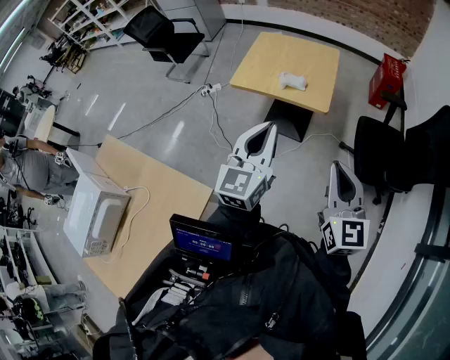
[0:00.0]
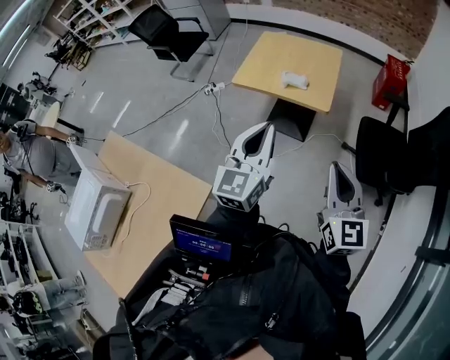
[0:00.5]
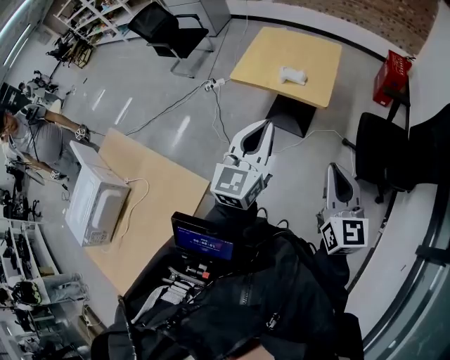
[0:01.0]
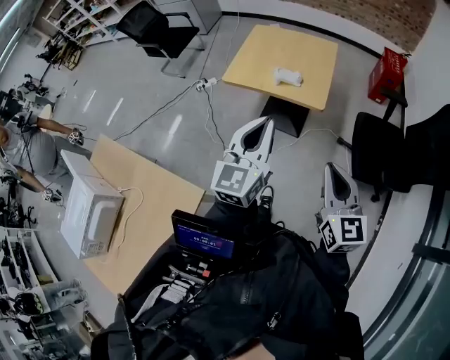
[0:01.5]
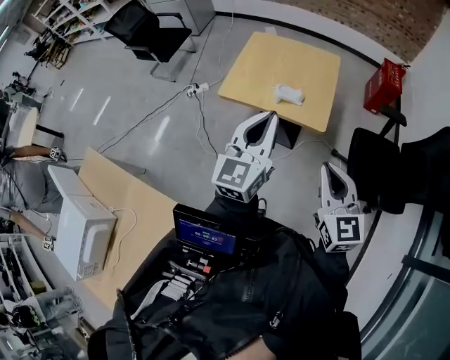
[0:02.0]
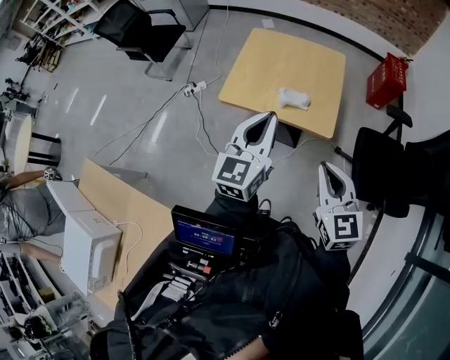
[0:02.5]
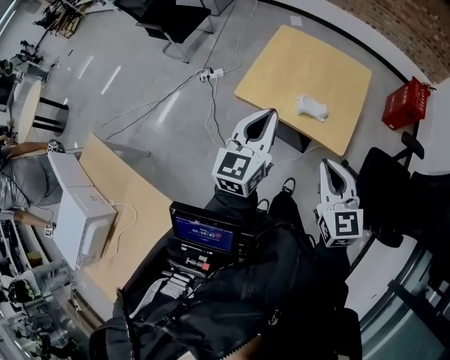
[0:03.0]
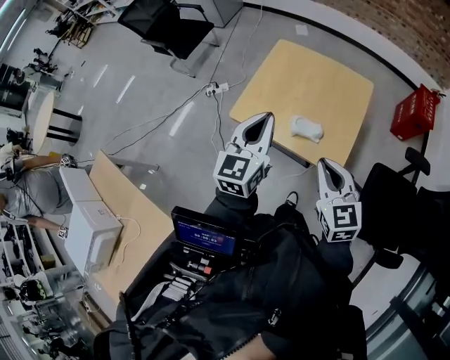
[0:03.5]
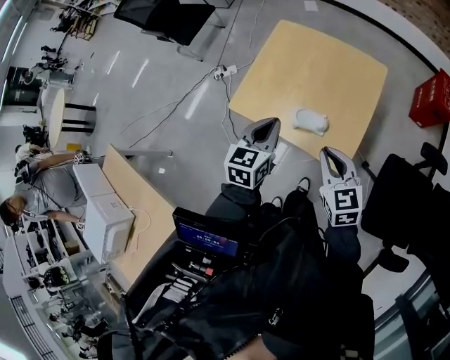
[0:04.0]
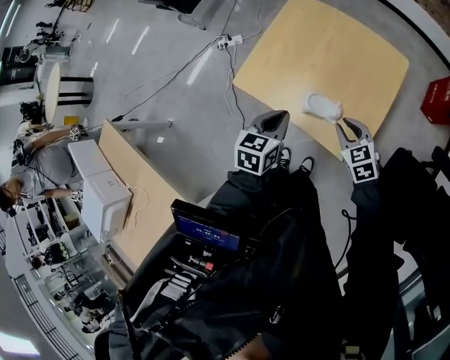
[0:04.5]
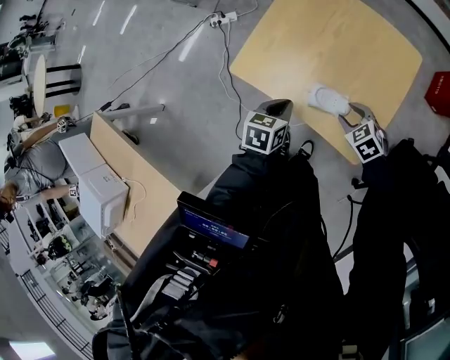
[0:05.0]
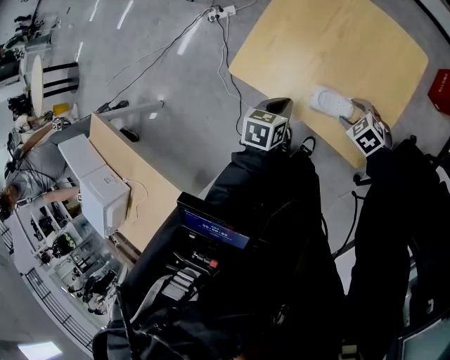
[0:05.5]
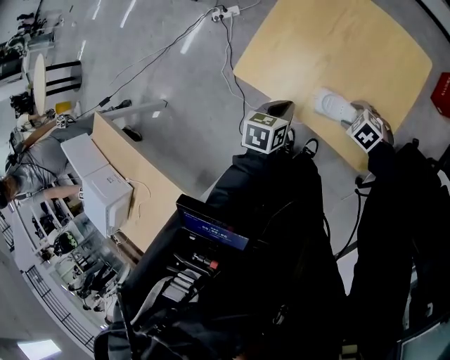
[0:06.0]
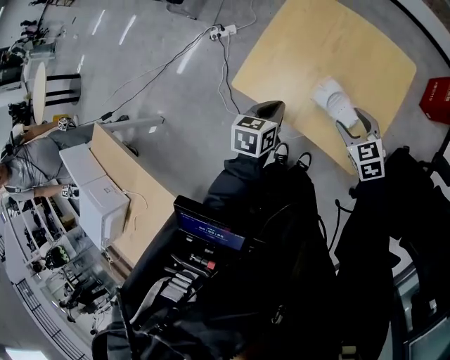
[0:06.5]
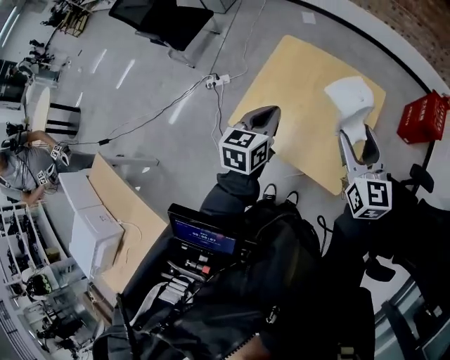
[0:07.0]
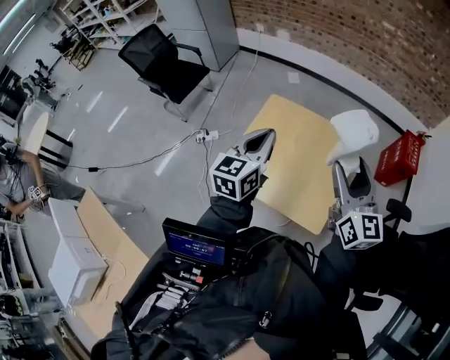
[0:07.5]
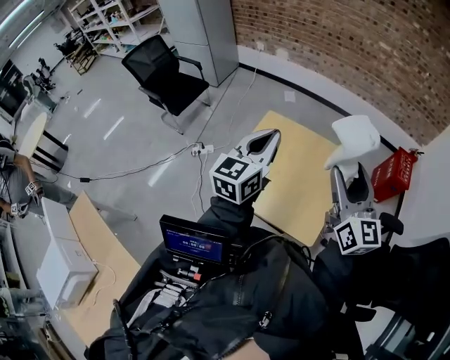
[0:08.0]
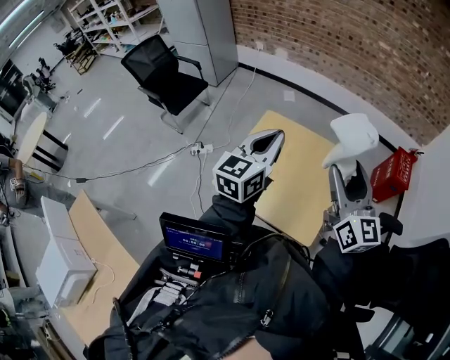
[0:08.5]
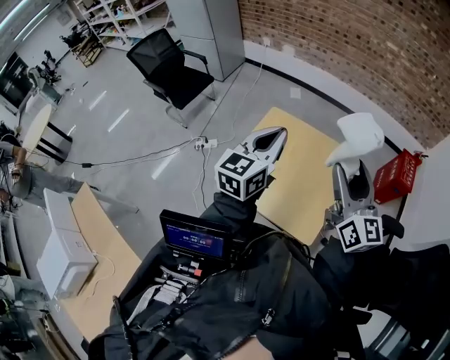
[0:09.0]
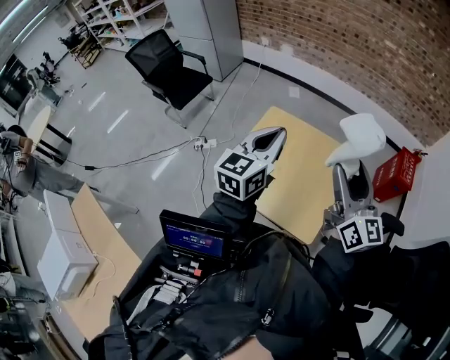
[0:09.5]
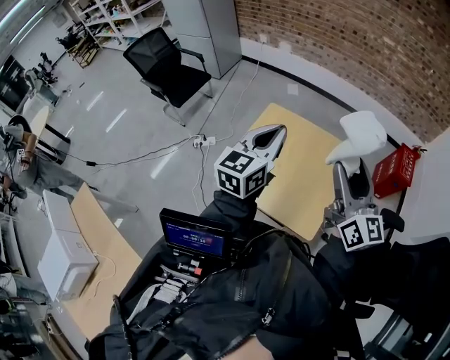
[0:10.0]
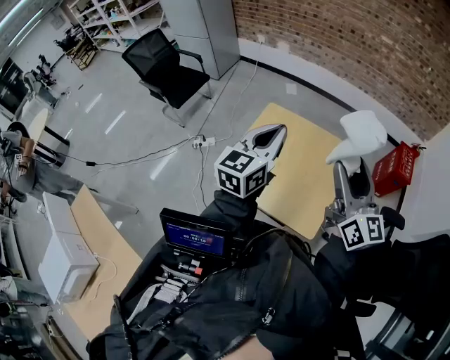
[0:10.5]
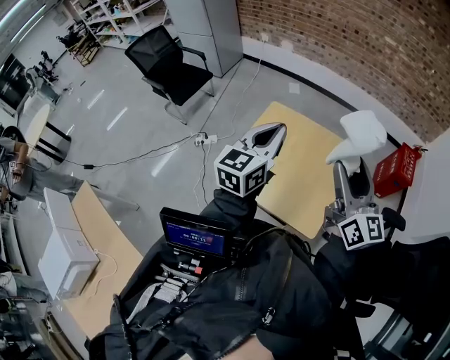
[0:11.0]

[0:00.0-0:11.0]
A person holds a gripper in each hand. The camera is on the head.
0.0 to 2.0 s: Both grippers move forward, some 15 cm.
2.0 to 3.5 s: The grippers both shift forward by roughly 25 cm.
3.5 to 5.5 s: The right gripper goes approximately 40 cm downward and forward, tilts its fingers about 50 degrees downward, and opens up; the left gripper shifts some 30 cm downward, and points its fingers approximately 40 degrees further downward.
5.5 to 7.5 s: Both grippers travel together upward, some 40 cm. The right gripper tips its fingers upward by roughly 70 degrees. The left gripper points its fingers about 40 degrees further upward.
7.5 to 9.0 s: The left gripper shifts approximately 5 cm upward.
9.0 to 11.0 s: Both grippers stay about where they are.

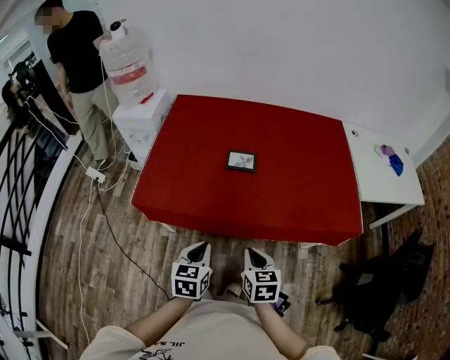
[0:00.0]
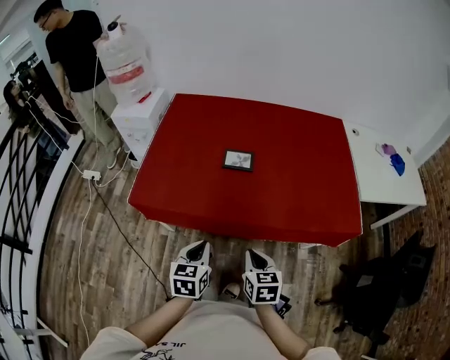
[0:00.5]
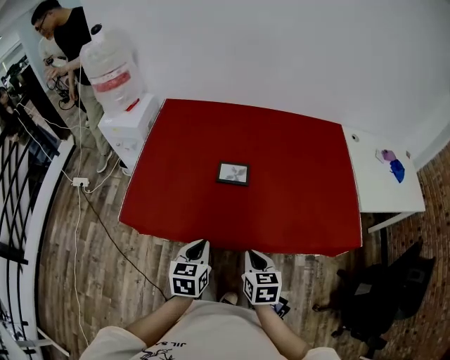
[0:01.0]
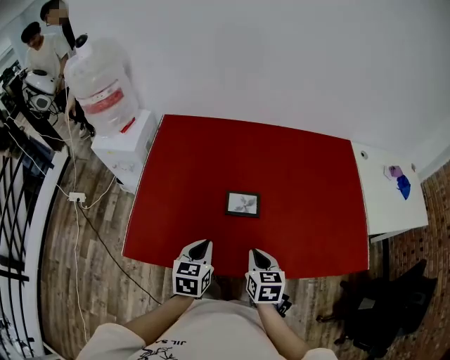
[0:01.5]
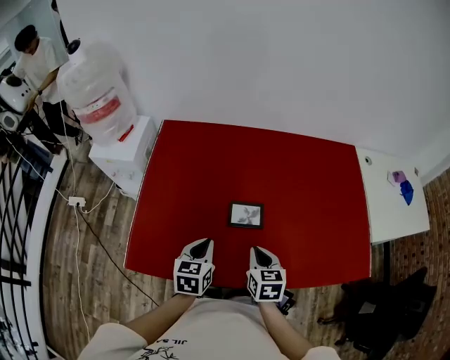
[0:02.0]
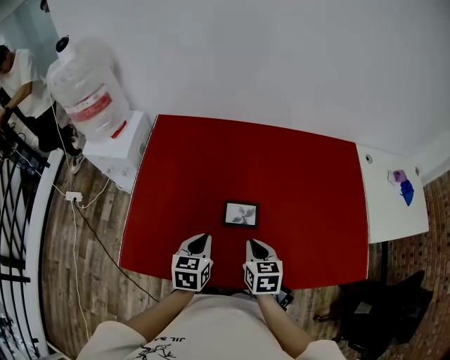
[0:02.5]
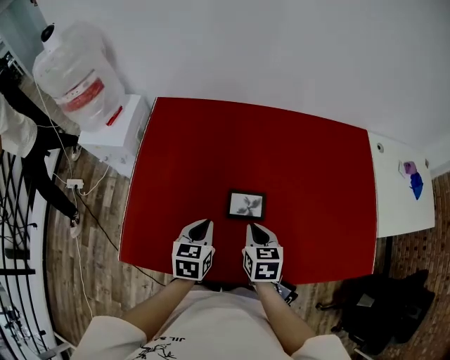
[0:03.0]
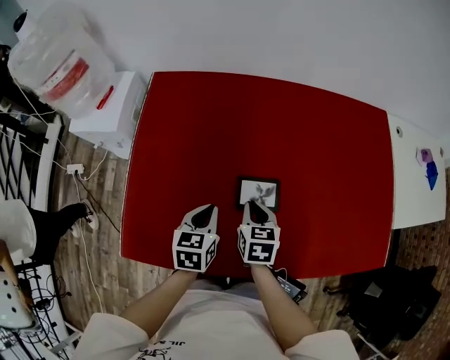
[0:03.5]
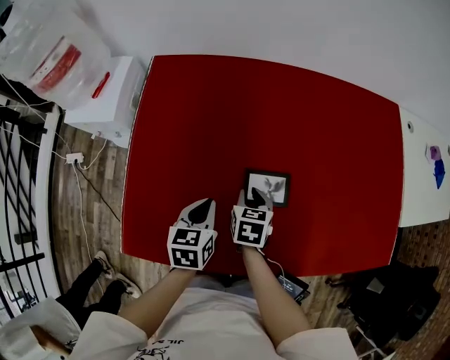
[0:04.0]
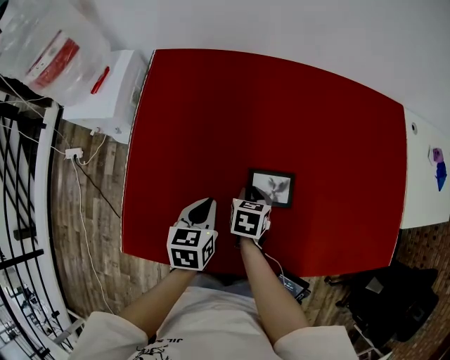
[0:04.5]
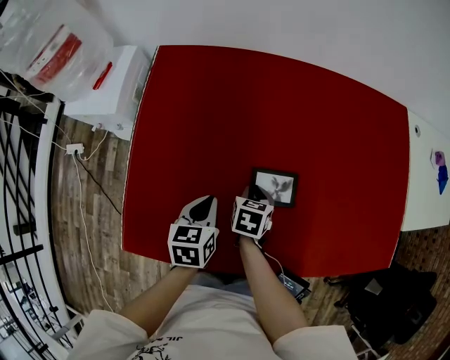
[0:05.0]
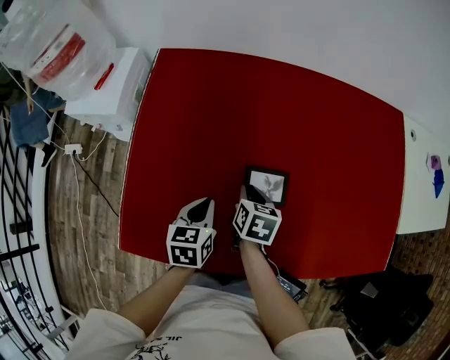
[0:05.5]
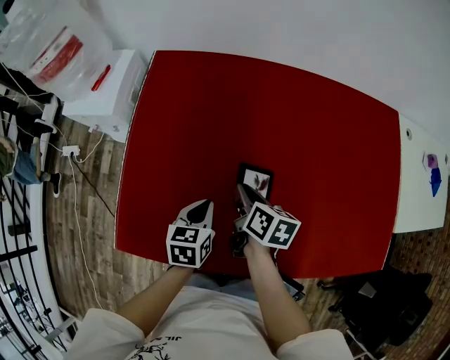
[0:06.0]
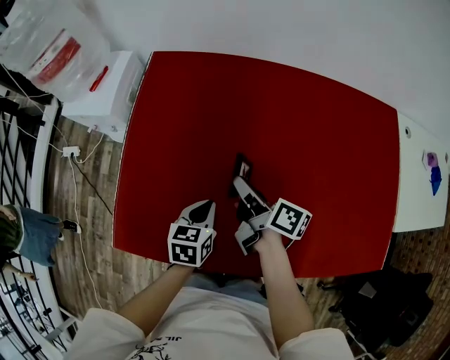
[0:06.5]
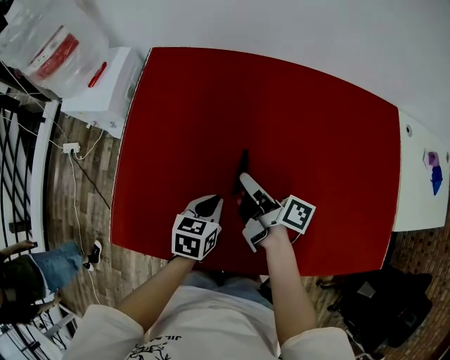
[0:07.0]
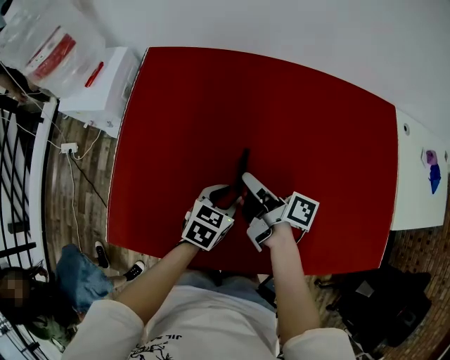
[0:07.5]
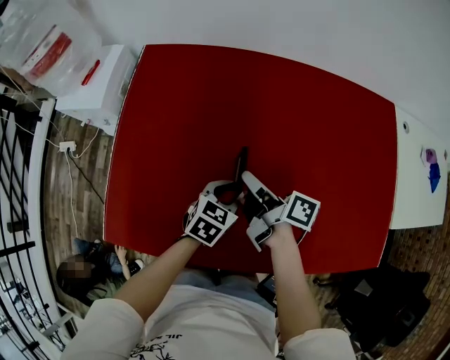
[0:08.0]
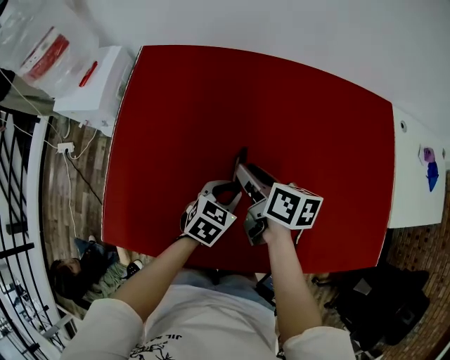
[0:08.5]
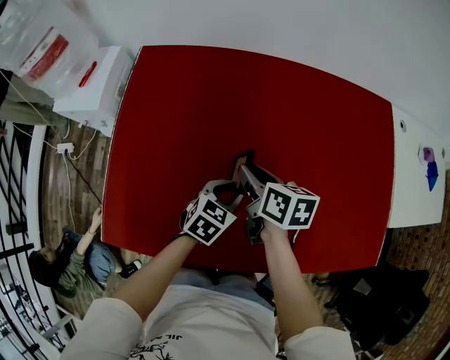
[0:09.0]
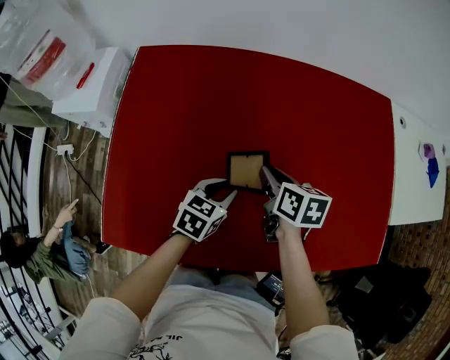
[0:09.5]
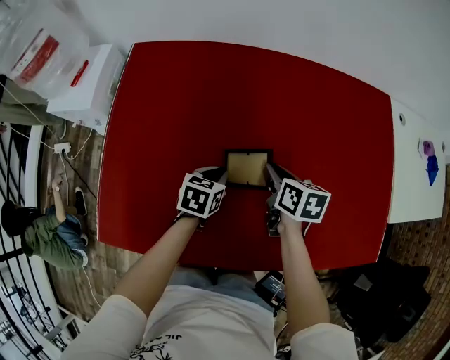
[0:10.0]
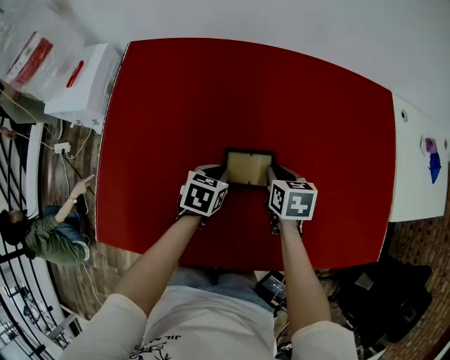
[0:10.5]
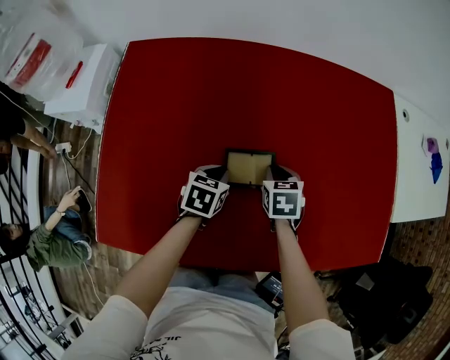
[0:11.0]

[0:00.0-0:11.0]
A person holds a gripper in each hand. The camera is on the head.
0.0 to 2.0 s: The grippers both shift forward by approximately 30 cm.
2.0 to 3.5 s: The right gripper goes about 15 cm forward, downward and to the left. Meanwhile the left gripper is displaced forward and downward by some 10 cm.
3.5 to 5.5 s: The left gripper ends up some 5 cm from where it was. The right gripper ends up approximately 5 cm from where it was.
5.5 to 7.5 s: The right gripper heads upward, covering approximately 10 cm, and angles its fingers upward, by about 40 degrees, while the left gripper is displaced to the right by some 15 cm, turns by roughly 30 degrees, and opens its fingers.
7.5 to 9.0 s: The right gripper changes its angle by about 40 degrees.
9.0 to 11.0 s: The left gripper changes place by roughly 5 cm, while the right gripper moves to the right and downward, about 15 cm, and rotates approximately 40 degrees.

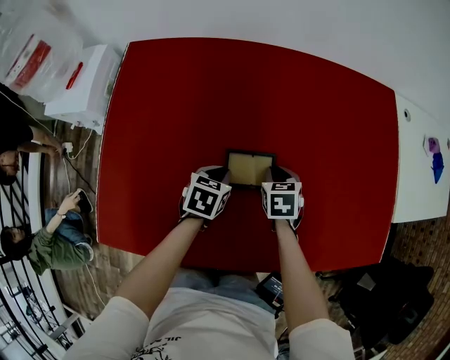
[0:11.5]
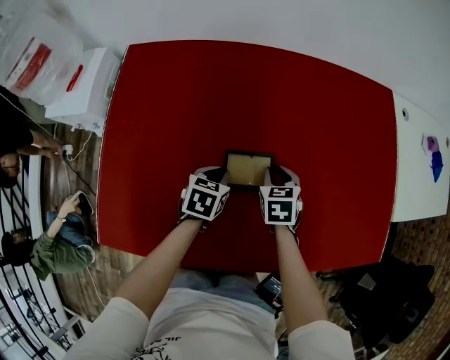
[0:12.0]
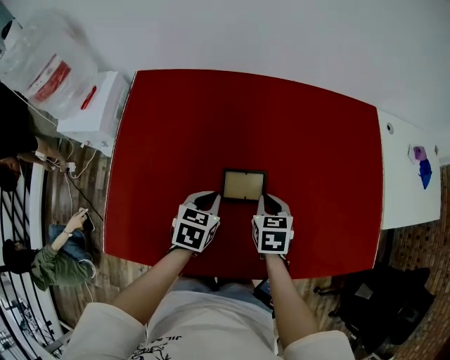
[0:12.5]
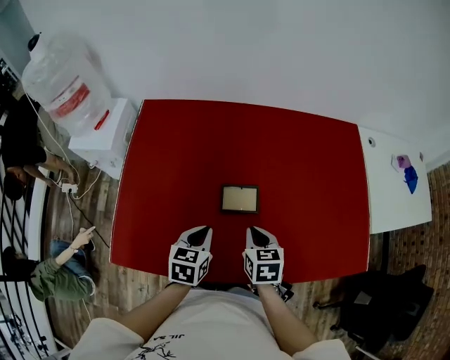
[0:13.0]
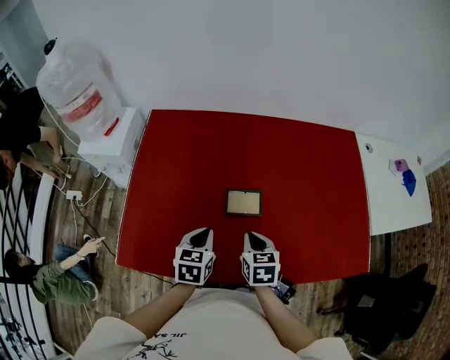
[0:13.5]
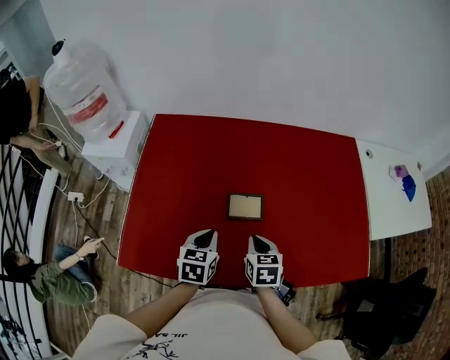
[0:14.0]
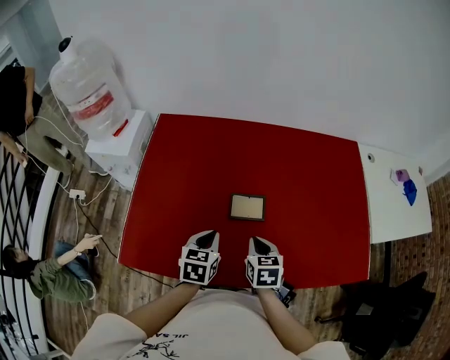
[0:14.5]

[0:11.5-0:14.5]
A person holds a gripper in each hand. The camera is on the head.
11.5 to 13.0 s: The grippers both shift upward and backward by approximately 20 cm.
13.0 to 14.5 s: The grippers stay close to where they were, moving slightly.

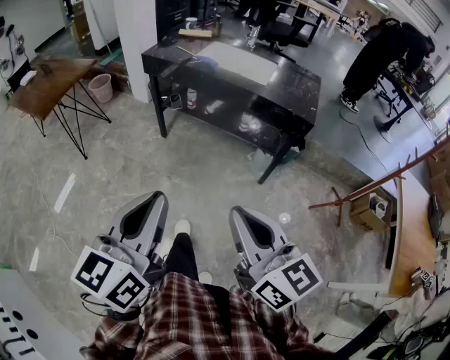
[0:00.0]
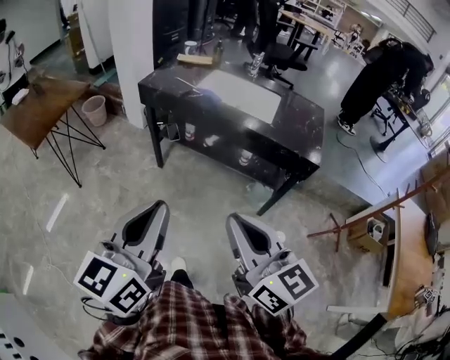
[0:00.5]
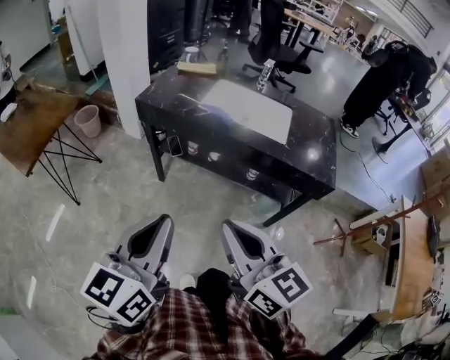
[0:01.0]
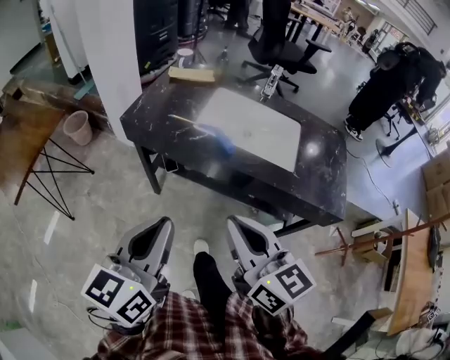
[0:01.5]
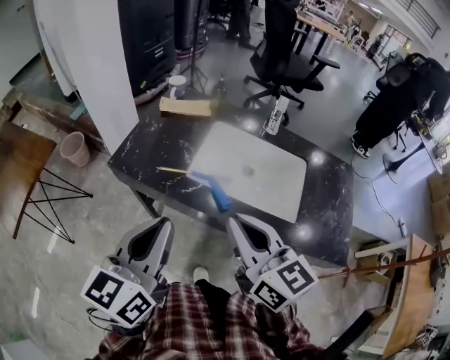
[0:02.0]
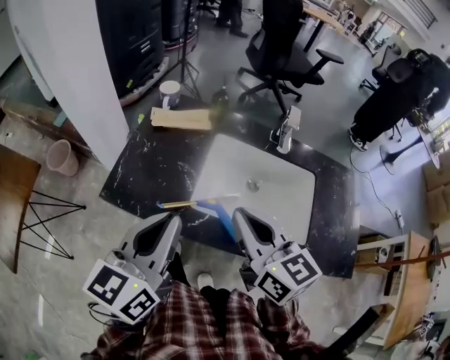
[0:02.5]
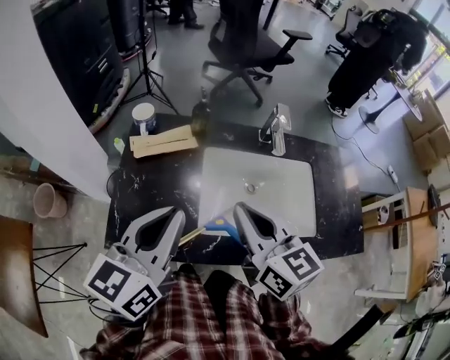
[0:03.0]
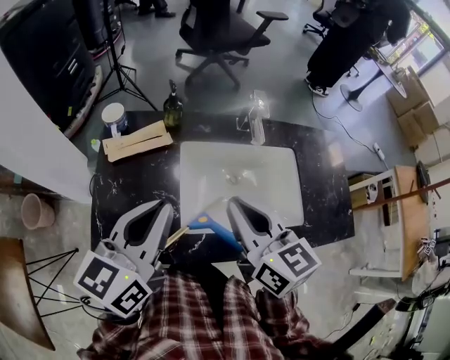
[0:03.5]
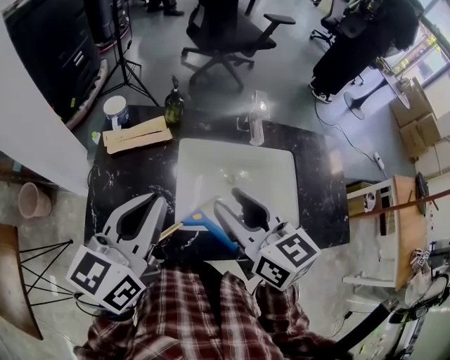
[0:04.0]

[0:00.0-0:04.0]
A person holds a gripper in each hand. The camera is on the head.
0.0 to 2.0 s: The two grippers travel together, forward, about 60 cm.
2.0 to 4.0 s: The left gripper ends up roughly 25 cm from where it was, and rotates approximately 20 degrees; the right gripper shifts by approximately 25 cm, turns by some 20 degrees, and opens its fingers.
